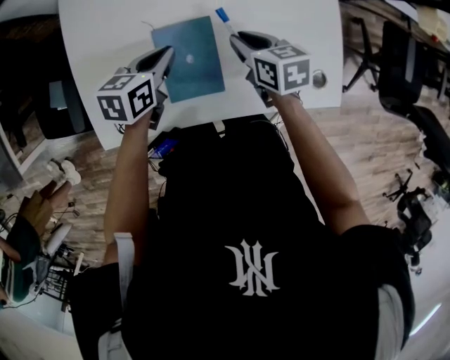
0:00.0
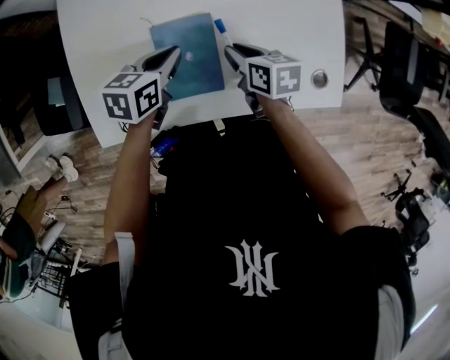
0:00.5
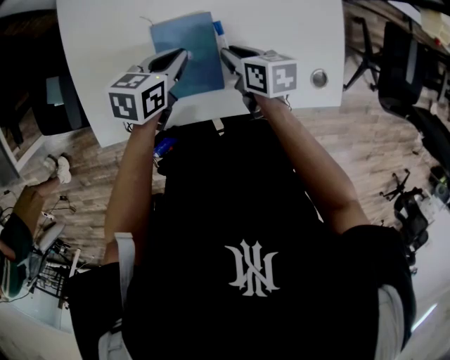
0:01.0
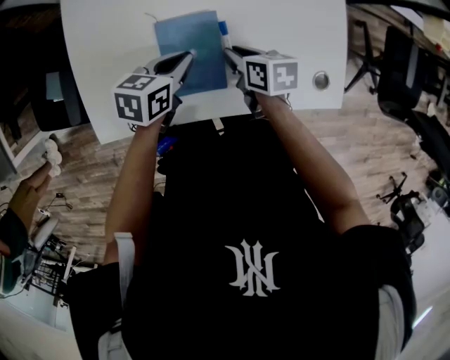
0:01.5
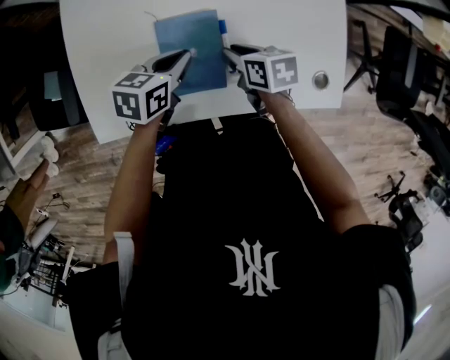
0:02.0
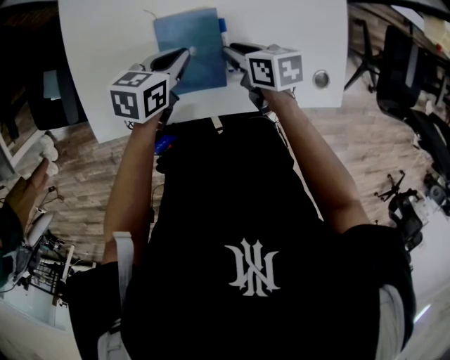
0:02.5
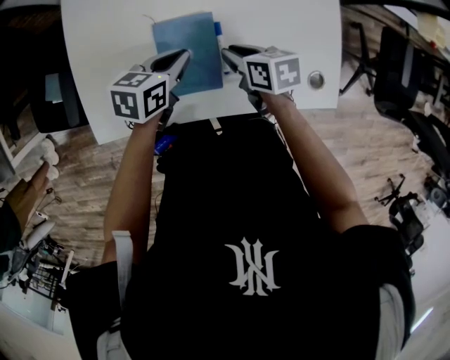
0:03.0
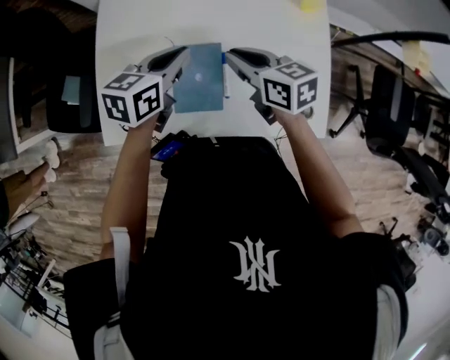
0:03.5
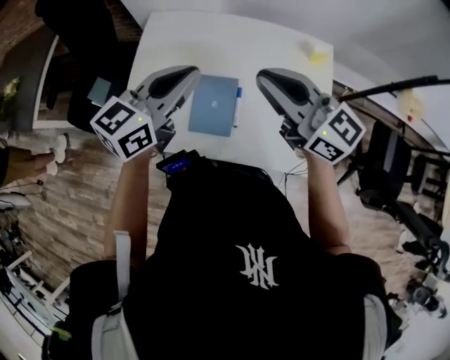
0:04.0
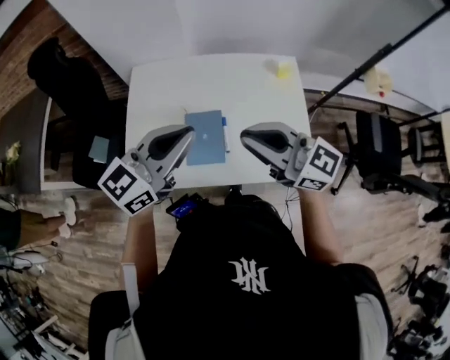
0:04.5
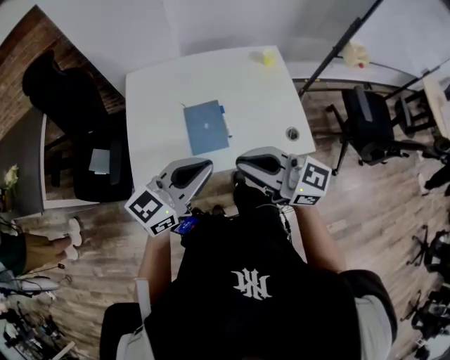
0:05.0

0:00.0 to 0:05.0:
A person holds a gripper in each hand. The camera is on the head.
0:00.0 to 0:02.5: The right gripper shifts by approximately 5 cm.
0:02.5 to 0:05.0: Both grippers move upward and backward, about 40 cm. The right gripper tilts its fingers approximately 50 degrees upward; the left gripper tips its fingers upward by roughly 40 degrees.

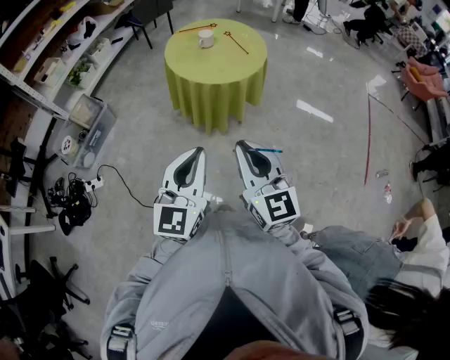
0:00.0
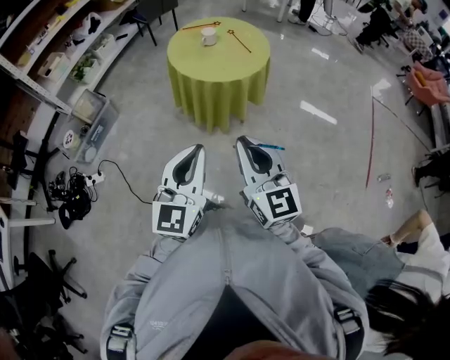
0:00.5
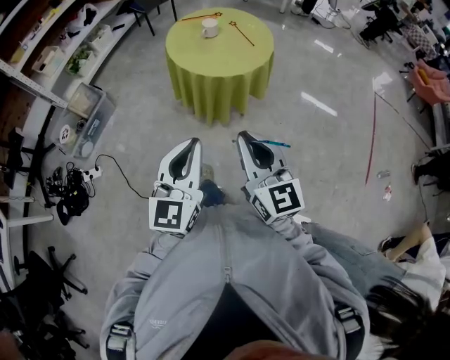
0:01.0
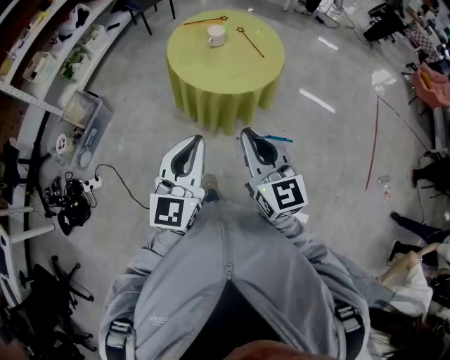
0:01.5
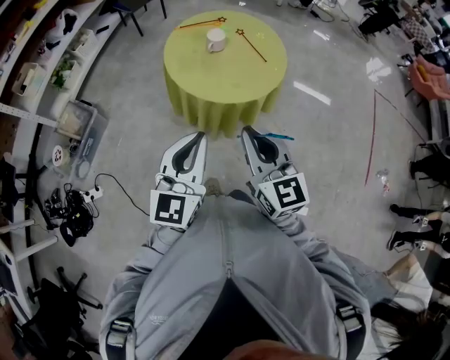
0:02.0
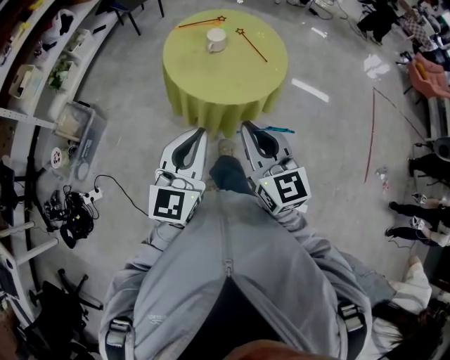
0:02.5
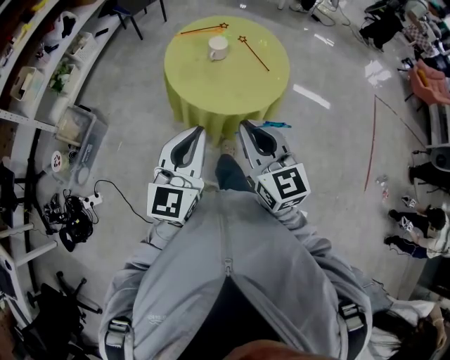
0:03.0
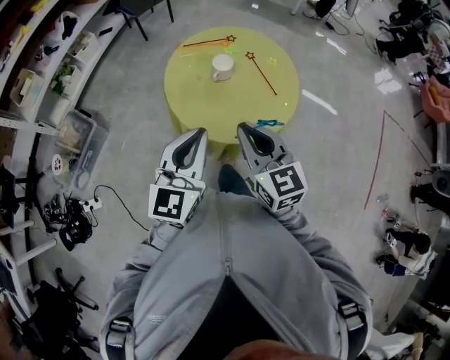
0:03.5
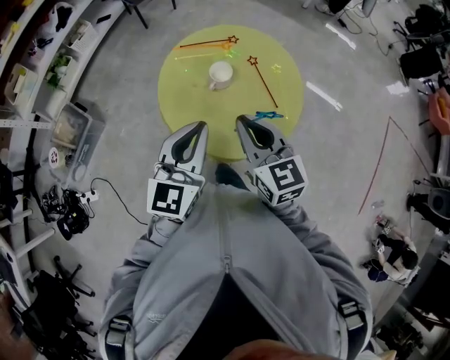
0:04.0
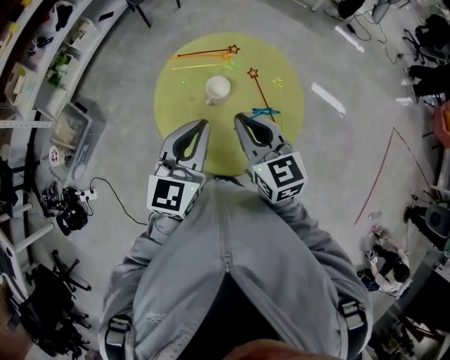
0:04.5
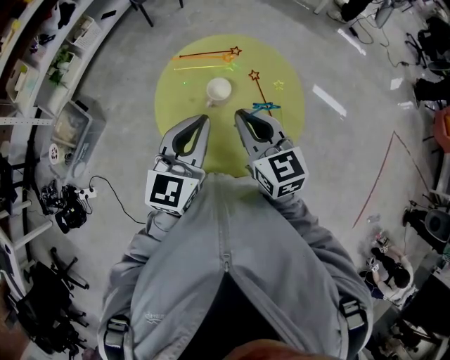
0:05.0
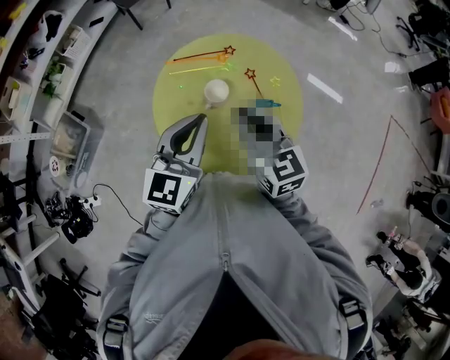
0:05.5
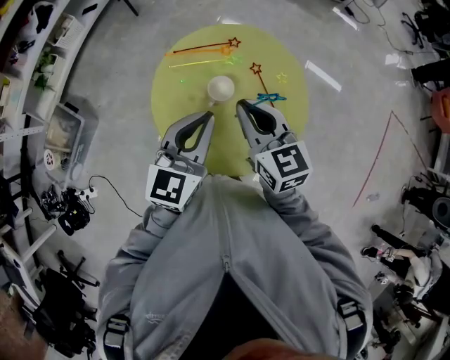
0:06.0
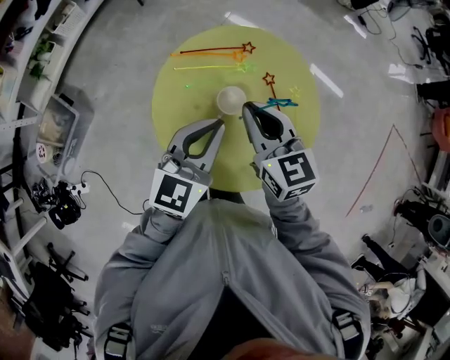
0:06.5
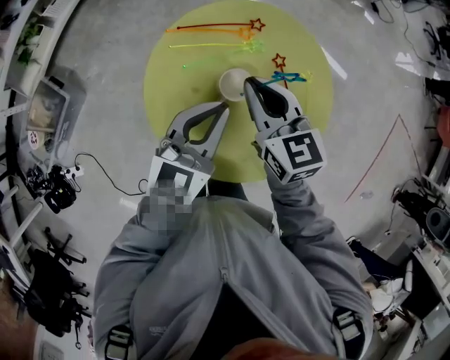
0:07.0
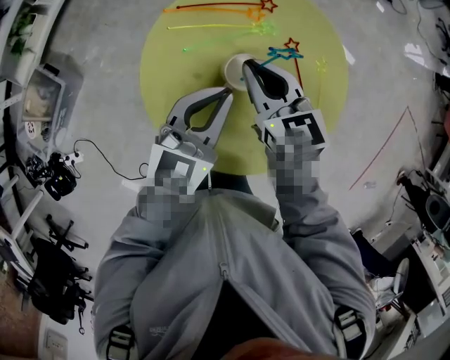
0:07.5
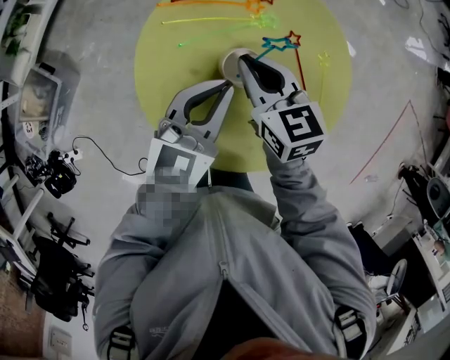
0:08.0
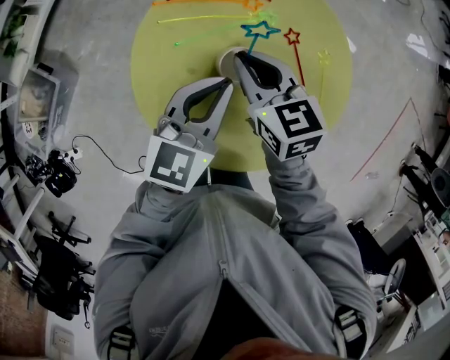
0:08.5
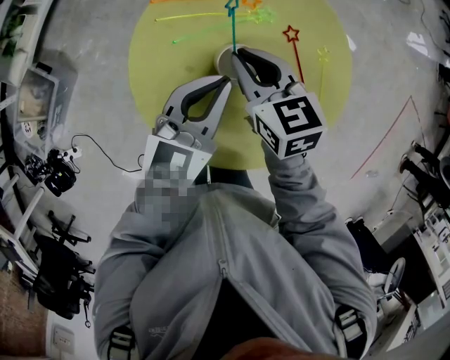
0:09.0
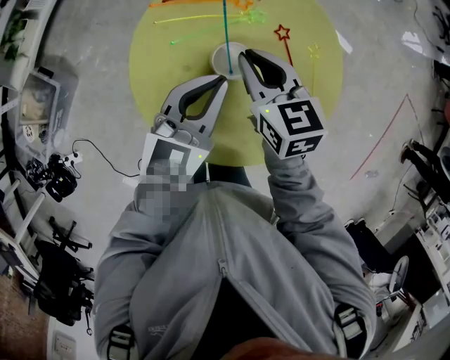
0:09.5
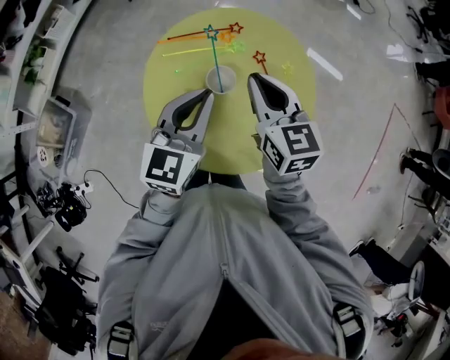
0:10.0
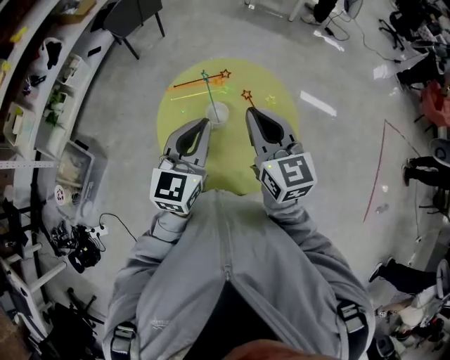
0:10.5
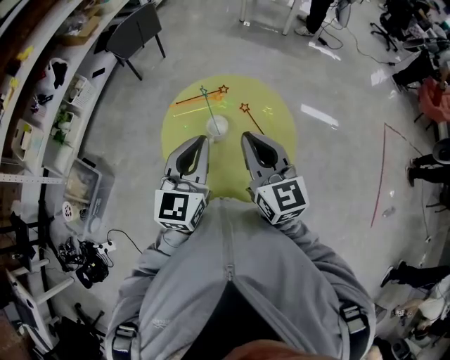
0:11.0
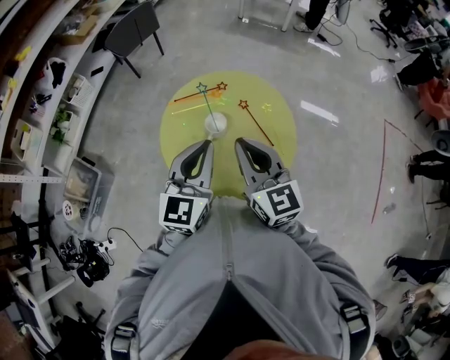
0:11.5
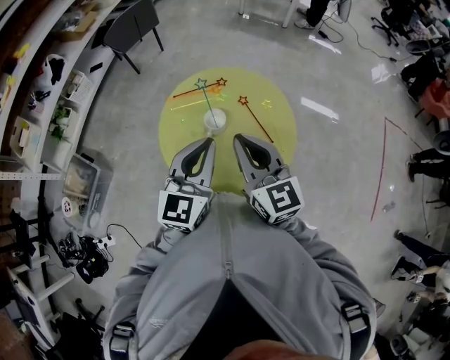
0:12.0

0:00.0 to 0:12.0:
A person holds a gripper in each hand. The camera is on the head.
0:00.0 to 0:02.0: The two grippers go some 25 cm forward.
0:02.0 to 0:04.0: The two grippers go about 30 cm forward.
0:04.0 to 0:06.0: Both grippers move forward, some 15 cm.
0:06.0 to 0:08.0: Both grippers travel together downward and forward, about 20 cm.
0:08.0 to 0:10.0: The left gripper heads upward, covering roughly 10 cm. Meanwhile the right gripper is displaced upward and to the right by about 15 cm.
0:10.0 to 0:12.0: The left gripper goes roughly 15 cm upward and backward, while the right gripper goes approximately 20 cm backward and upward.

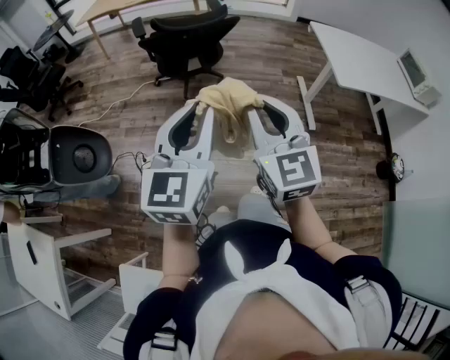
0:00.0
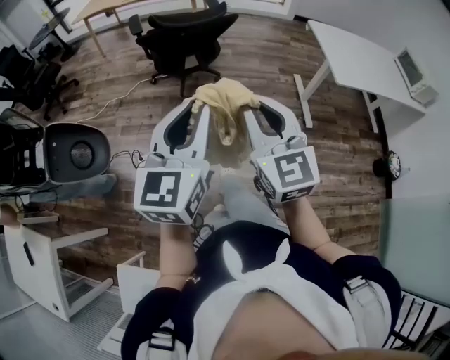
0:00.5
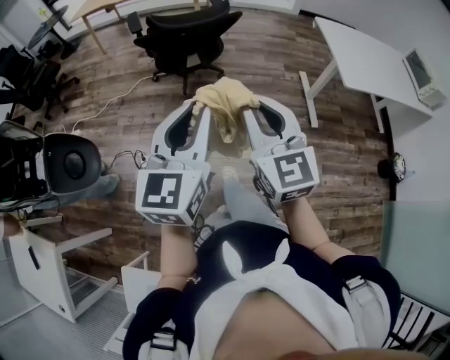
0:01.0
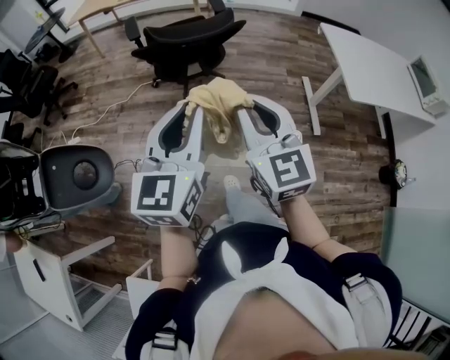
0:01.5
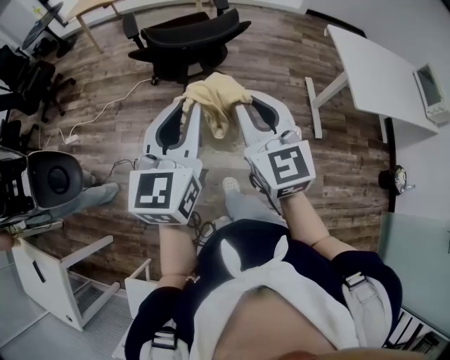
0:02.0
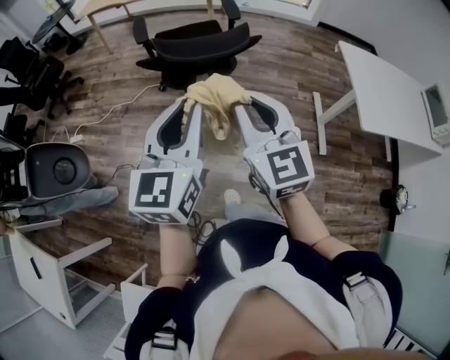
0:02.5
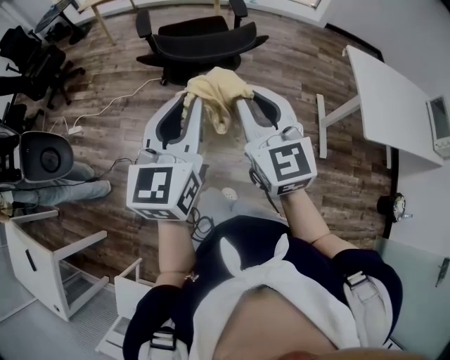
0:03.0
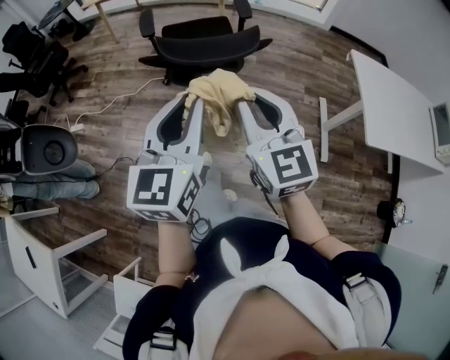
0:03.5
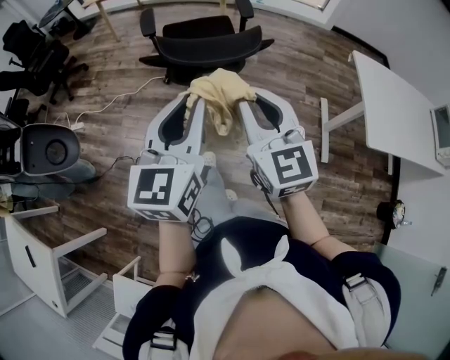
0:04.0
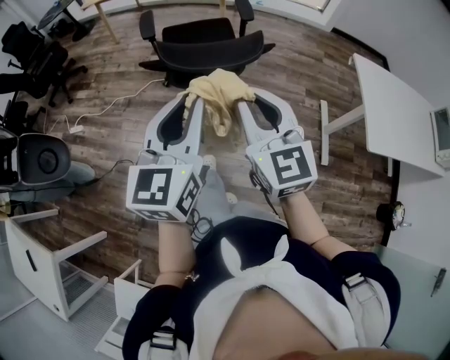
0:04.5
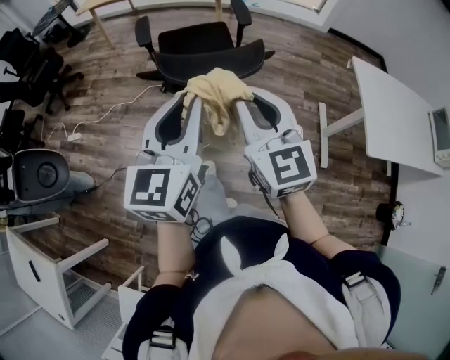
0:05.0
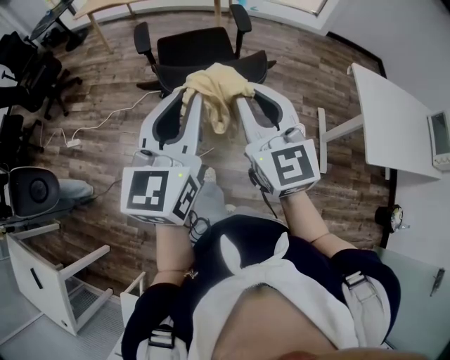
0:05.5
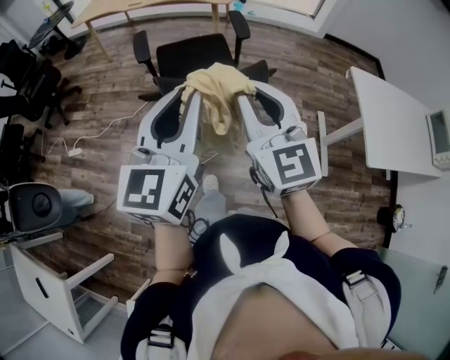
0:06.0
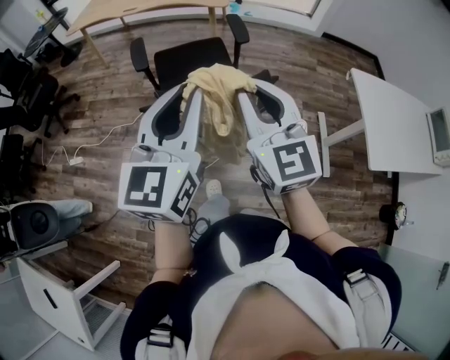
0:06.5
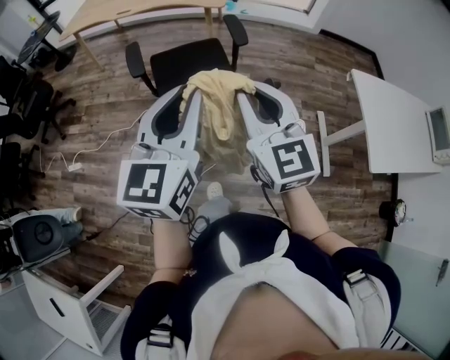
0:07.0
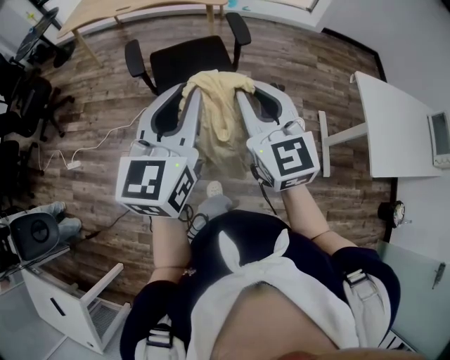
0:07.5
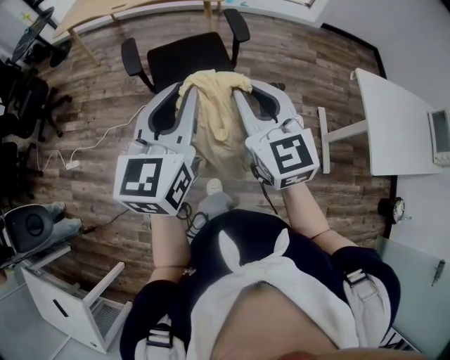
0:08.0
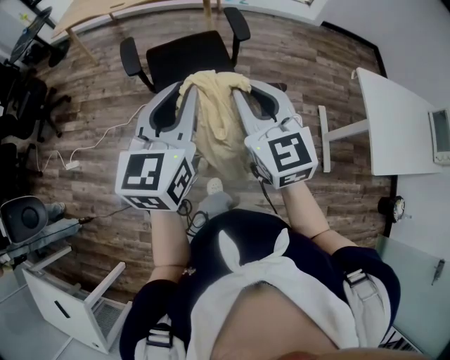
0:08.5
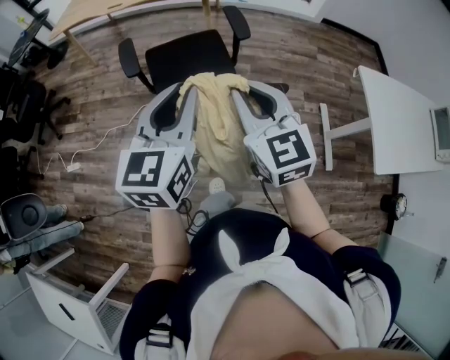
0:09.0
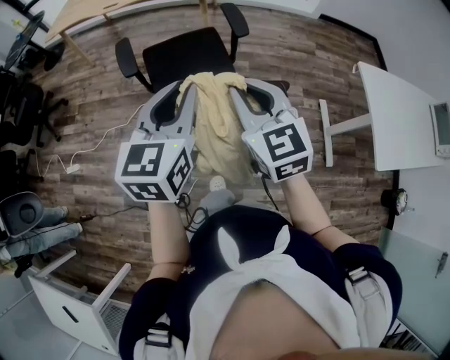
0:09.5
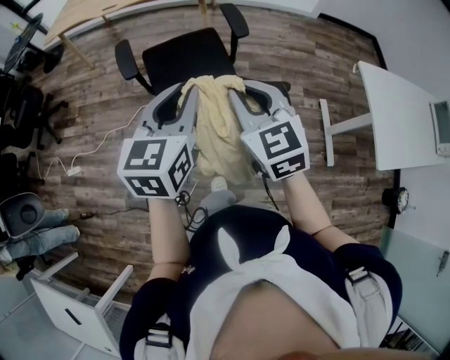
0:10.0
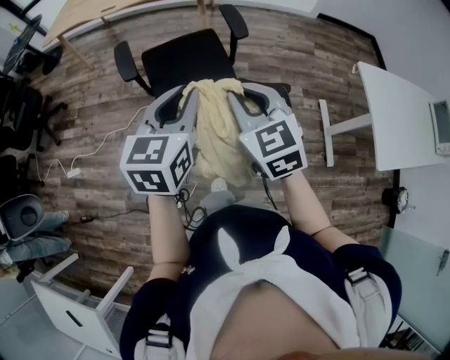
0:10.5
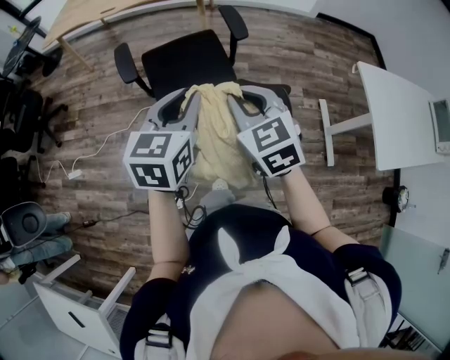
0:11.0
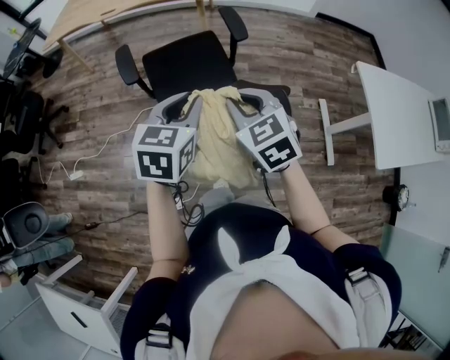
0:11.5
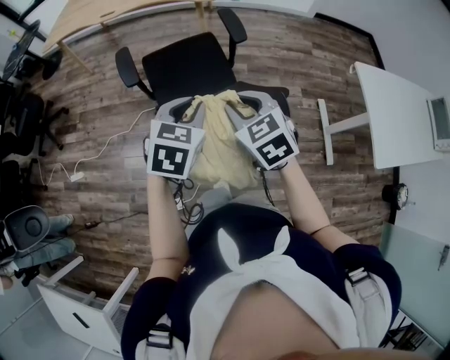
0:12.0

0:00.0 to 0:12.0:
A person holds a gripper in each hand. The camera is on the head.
0:00.0 to 0:02.0: The grippers both shift forward by roughly 25 cm.
0:02.0 to 0:04.0: Both grippers move forward, about 10 cm.
0:04.0 to 0:06.0: The left gripper travels forward and upward by about 15 cm; the right gripper goes approximately 15 cm forward.
0:06.0 to 0:08.0: Both grippers move forward, about 15 cm.
0:08.0 to 0:10.0: The grippers both shift downward and forward by approximately 10 cm.
0:10.0 to 0:12.0: Both grippers move downward, some 5 cm. The left gripper rotates some 30 degrees.
